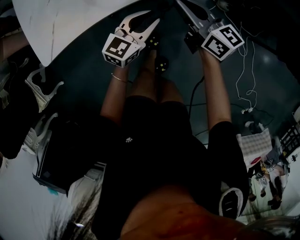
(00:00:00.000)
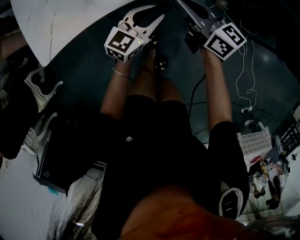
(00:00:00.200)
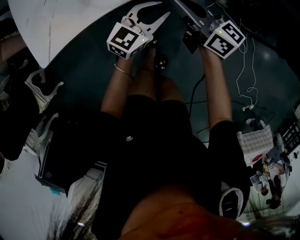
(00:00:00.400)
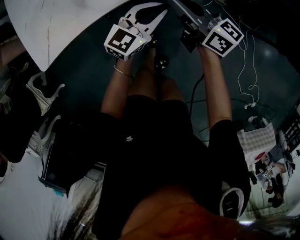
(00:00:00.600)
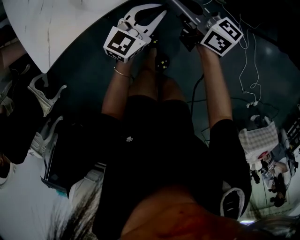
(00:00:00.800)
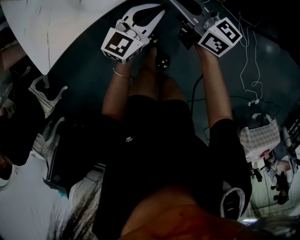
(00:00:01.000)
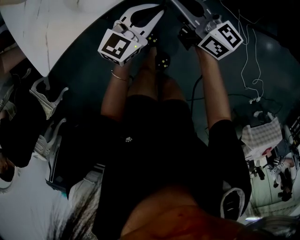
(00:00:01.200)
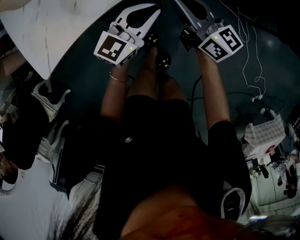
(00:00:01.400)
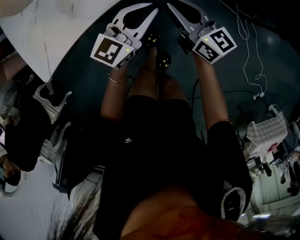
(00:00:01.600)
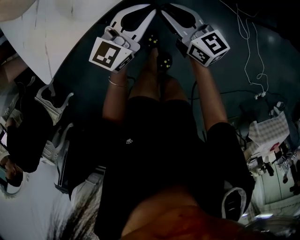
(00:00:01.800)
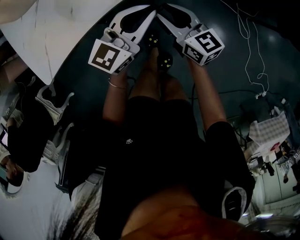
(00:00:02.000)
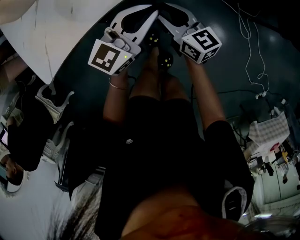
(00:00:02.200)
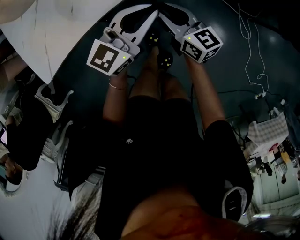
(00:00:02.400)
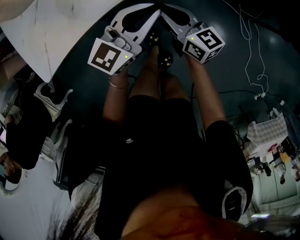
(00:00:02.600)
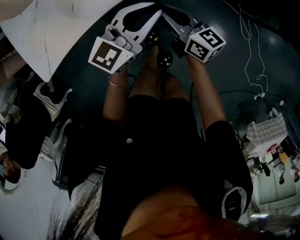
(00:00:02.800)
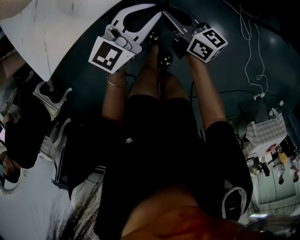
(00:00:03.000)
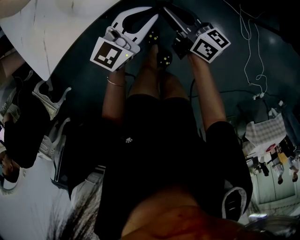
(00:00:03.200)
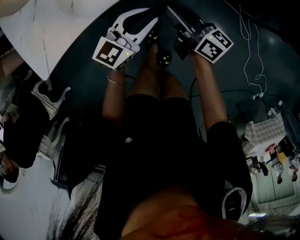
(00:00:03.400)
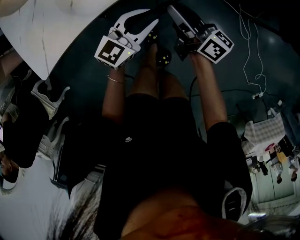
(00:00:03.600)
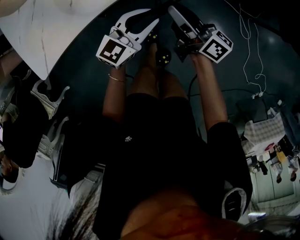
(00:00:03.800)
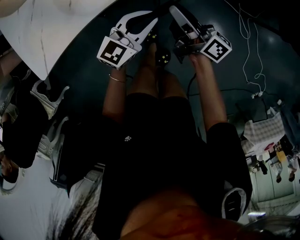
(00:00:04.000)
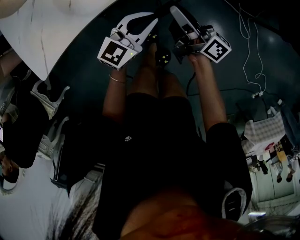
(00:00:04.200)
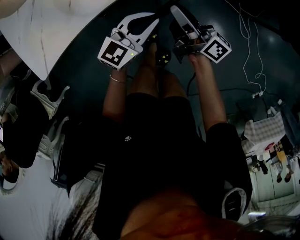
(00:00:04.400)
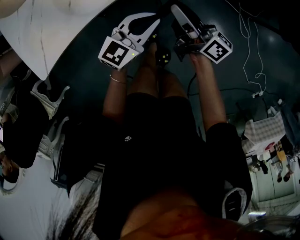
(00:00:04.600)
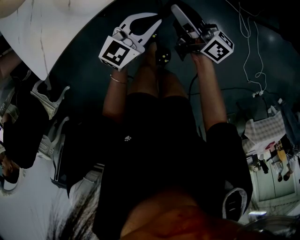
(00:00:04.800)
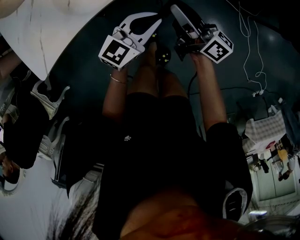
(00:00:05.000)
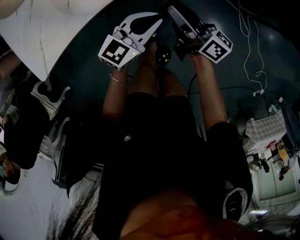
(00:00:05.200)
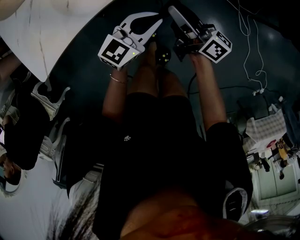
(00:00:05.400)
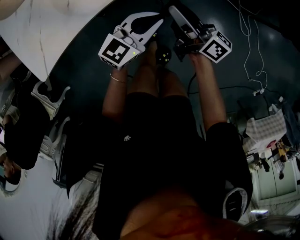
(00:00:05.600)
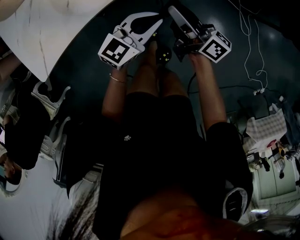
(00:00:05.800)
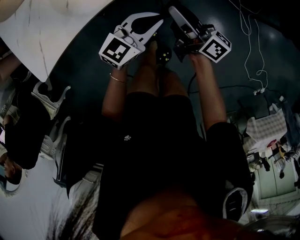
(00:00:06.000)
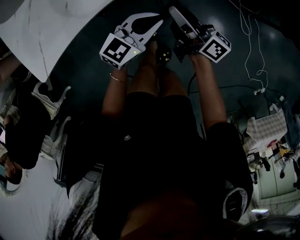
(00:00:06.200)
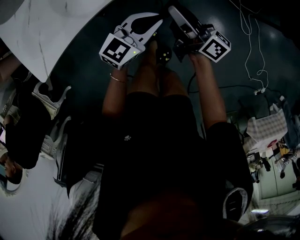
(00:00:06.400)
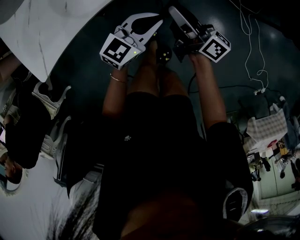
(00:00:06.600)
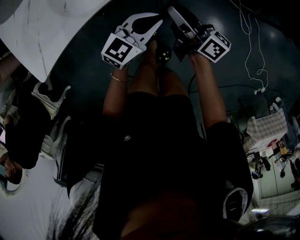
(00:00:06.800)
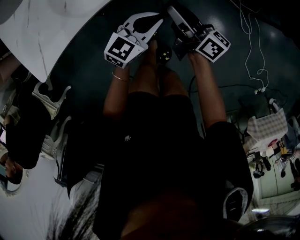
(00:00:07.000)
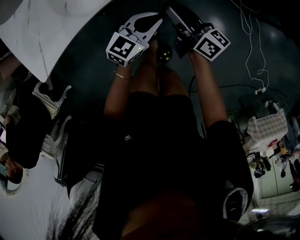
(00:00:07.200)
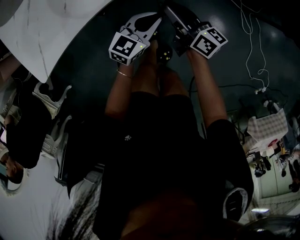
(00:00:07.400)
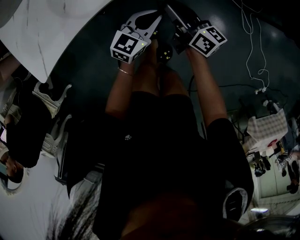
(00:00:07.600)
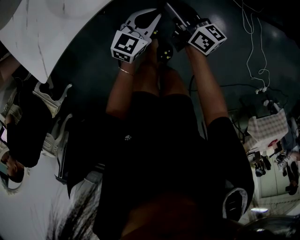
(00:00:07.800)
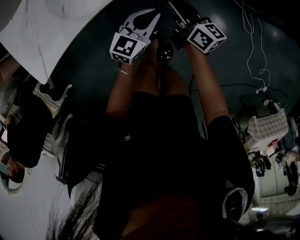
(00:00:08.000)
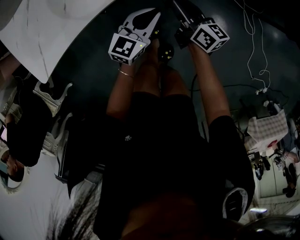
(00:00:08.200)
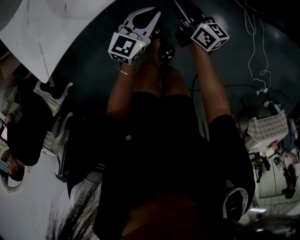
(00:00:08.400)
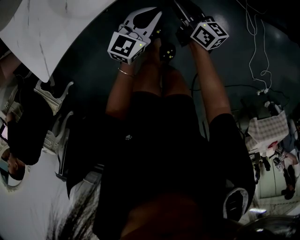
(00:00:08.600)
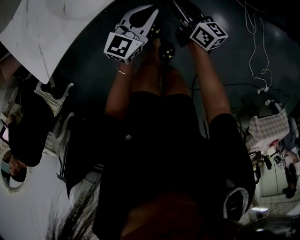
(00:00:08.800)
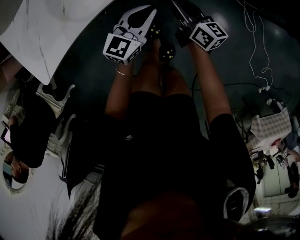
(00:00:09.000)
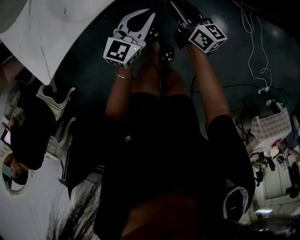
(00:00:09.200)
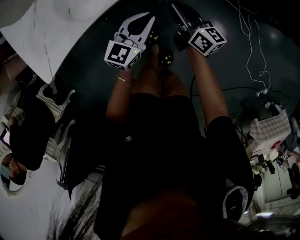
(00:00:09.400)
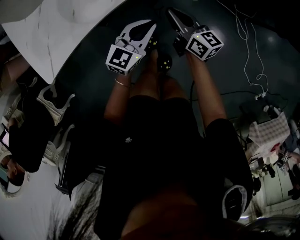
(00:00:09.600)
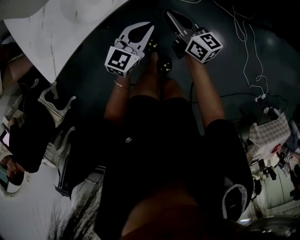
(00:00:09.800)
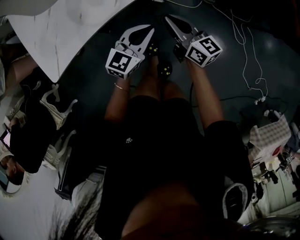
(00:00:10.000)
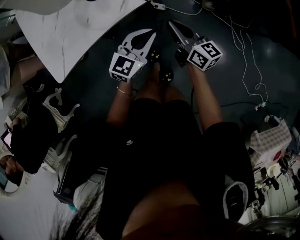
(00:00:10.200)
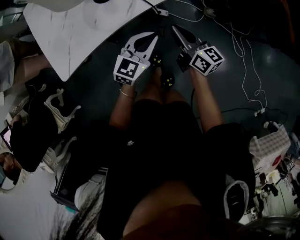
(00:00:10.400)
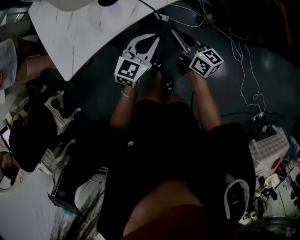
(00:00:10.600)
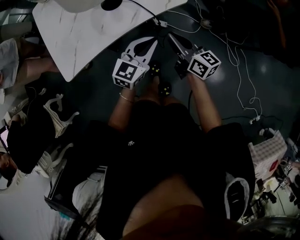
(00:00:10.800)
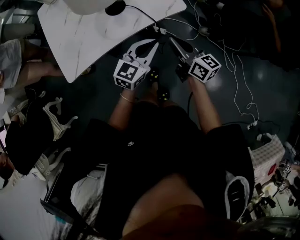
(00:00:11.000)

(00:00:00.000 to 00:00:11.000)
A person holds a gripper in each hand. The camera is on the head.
00:00:00.000 - 00:00:01.600: The left gripper goes approximately 10 cm upward and to the right.
00:00:01.600 - 00:00:03.200: There are only small adjustments of the grippers.
00:00:03.200 - 00:00:04.800: The left gripper ends up some 5 cm from where it was.
00:00:04.800 - 00:00:06.200: There are only small adjustments of the grippers.
00:00:06.200 - 00:00:07.800: The two grippers go roughly 5 cm downward.
00:00:07.800 - 00:00:09.400: The left gripper is displaced upward by some 5 cm.
00:00:09.400 - 00:00:11.000: The grippers both shift upward by roughly 15 cm.

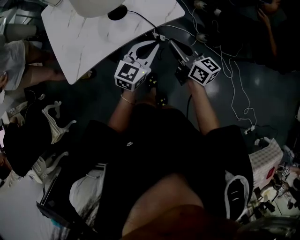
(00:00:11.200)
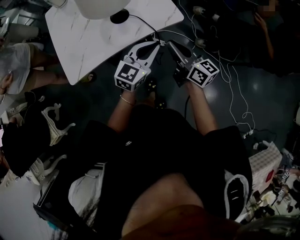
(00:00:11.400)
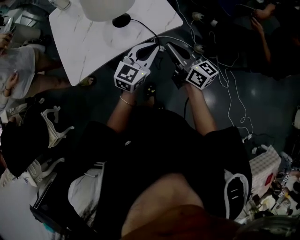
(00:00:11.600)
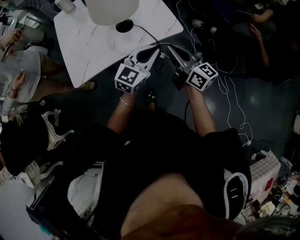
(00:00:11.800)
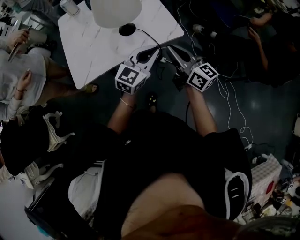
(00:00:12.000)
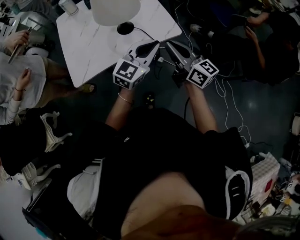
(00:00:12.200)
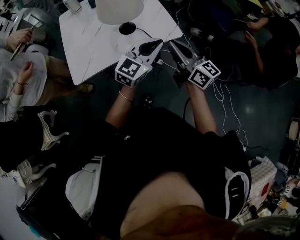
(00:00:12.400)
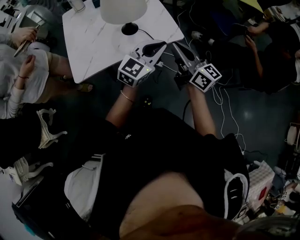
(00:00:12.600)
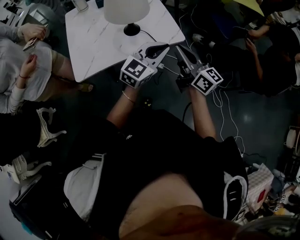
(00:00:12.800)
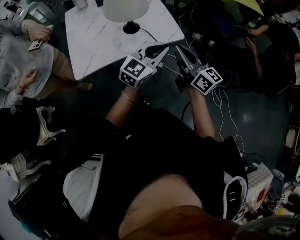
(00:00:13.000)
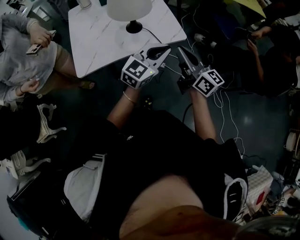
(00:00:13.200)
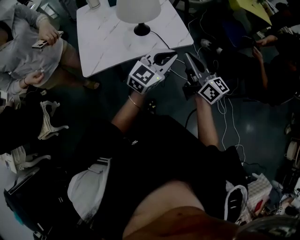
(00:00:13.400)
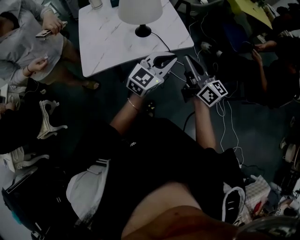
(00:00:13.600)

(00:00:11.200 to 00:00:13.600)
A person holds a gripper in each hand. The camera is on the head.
00:00:11.200 - 00:00:12.400: Both grippers travel together upward, roughly 15 cm.
00:00:12.400 - 00:00:13.600: The grippers stay close to where they were, moving slightly.

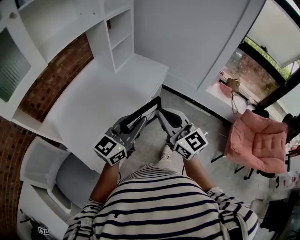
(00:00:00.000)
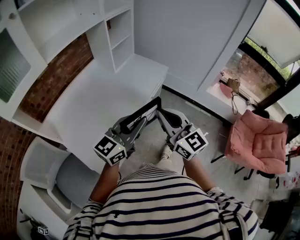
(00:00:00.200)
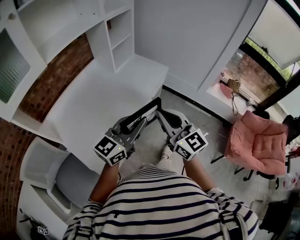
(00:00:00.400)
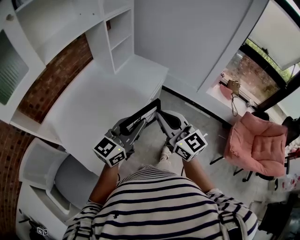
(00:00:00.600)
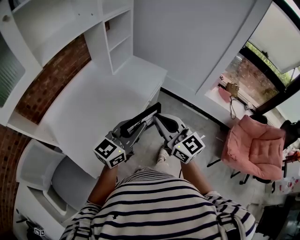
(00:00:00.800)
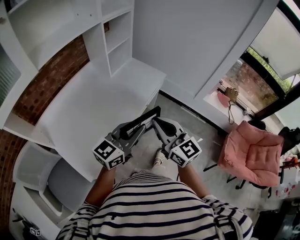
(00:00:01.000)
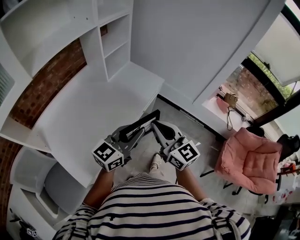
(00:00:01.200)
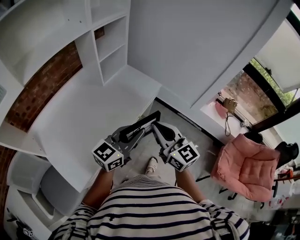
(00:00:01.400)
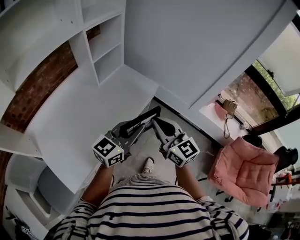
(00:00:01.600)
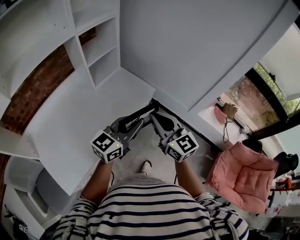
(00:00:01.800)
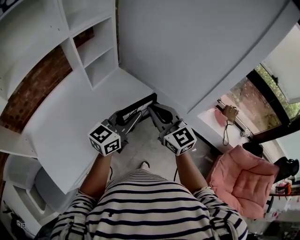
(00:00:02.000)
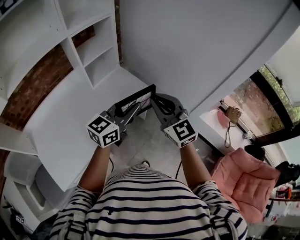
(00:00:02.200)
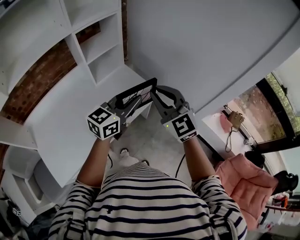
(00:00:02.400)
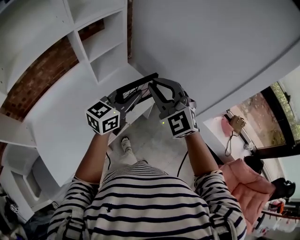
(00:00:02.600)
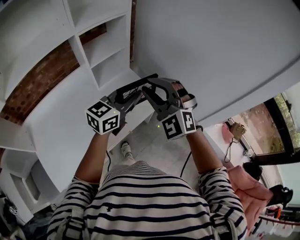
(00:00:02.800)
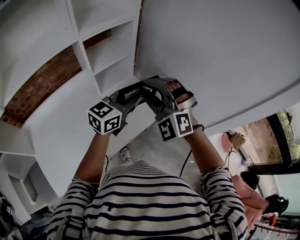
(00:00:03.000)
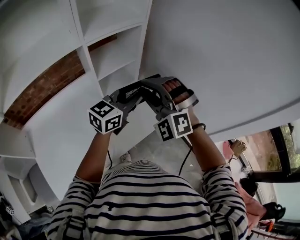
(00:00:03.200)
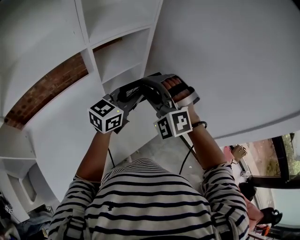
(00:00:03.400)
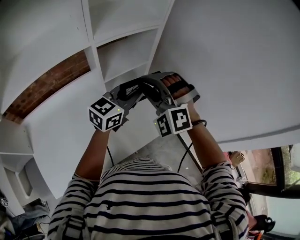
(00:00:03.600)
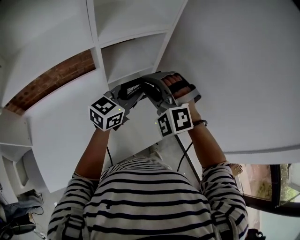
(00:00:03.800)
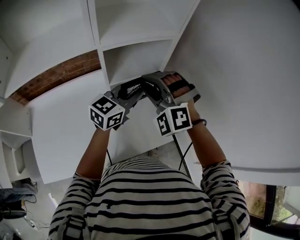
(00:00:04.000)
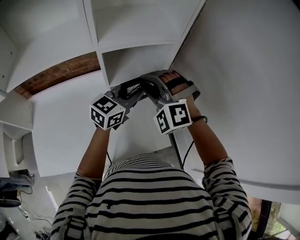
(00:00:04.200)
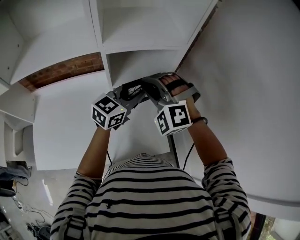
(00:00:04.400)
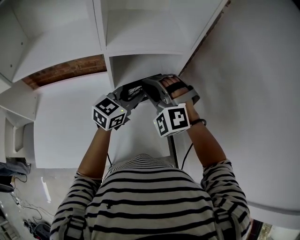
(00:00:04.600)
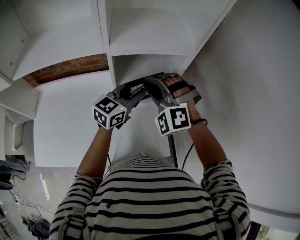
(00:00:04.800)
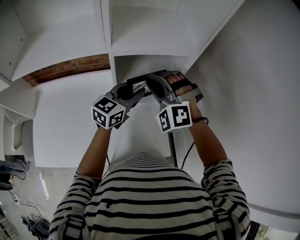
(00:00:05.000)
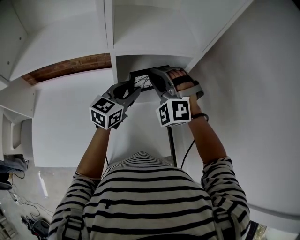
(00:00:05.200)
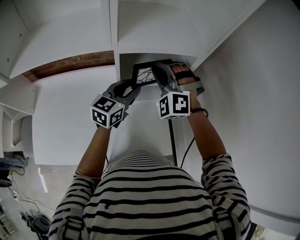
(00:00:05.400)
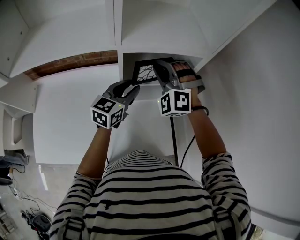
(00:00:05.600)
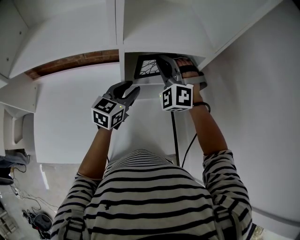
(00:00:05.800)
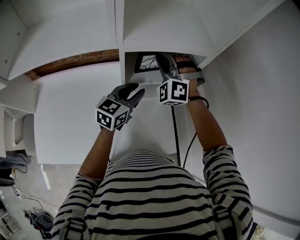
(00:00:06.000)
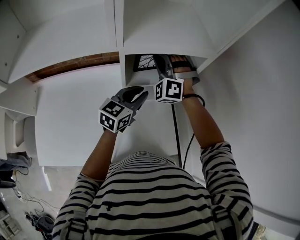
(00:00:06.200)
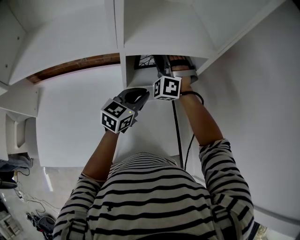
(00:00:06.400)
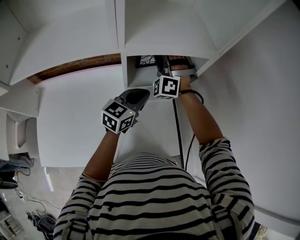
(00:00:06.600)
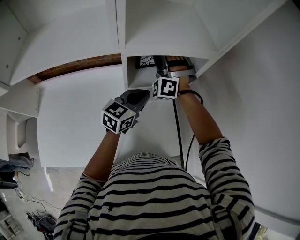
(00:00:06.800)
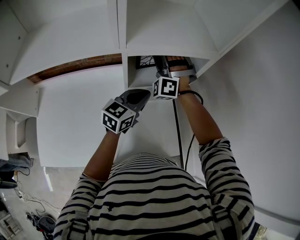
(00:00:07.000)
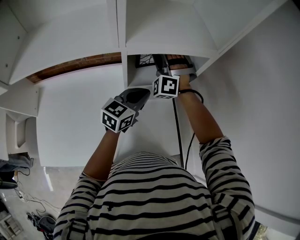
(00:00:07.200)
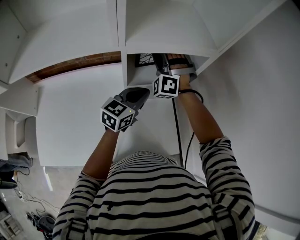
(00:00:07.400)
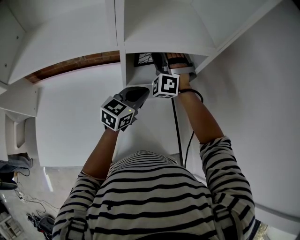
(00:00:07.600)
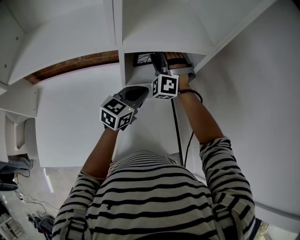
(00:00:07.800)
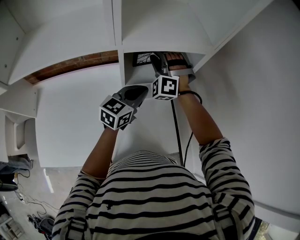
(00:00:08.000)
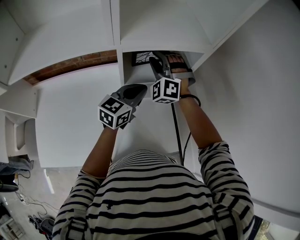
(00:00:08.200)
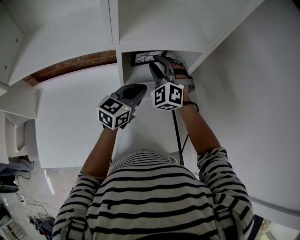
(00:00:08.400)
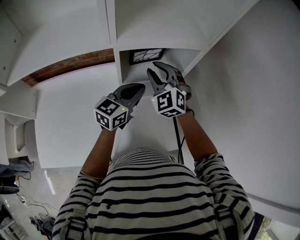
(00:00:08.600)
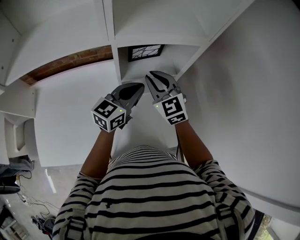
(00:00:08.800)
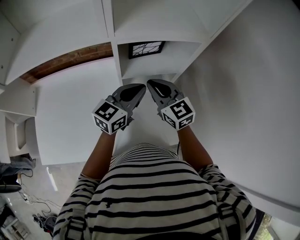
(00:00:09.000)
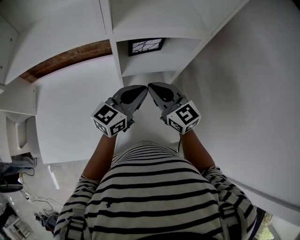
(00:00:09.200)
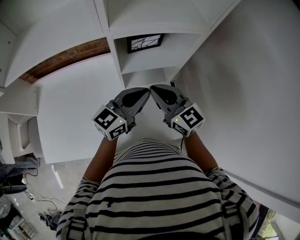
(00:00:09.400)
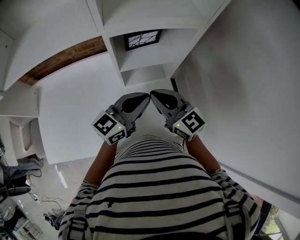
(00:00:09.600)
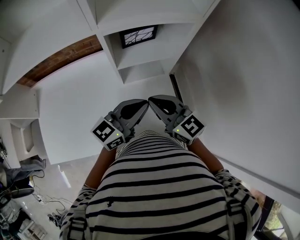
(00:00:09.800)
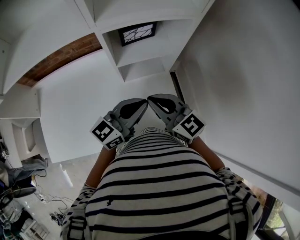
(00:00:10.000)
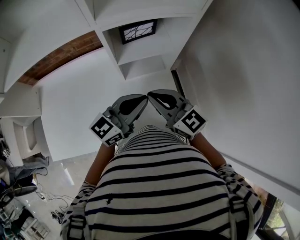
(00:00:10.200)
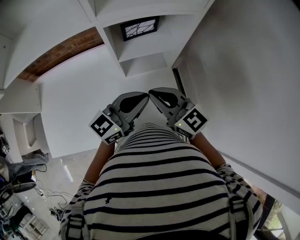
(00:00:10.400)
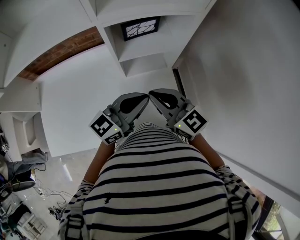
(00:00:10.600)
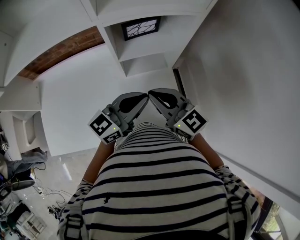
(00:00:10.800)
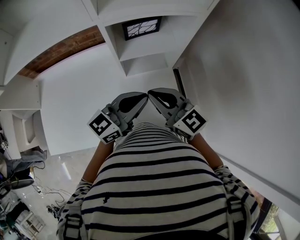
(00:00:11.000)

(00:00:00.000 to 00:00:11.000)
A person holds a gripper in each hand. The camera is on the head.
00:00:00.000 - 00:00:01.600: Both grippers travel together forward and to the right, roughly 20 cm.
00:00:01.600 - 00:00:03.200: Both grippers travel together forward, roughly 30 cm. The right gripper rotates around the line of its fingers by some 80 degrees, counterclockwise from behind.
00:00:03.200 - 00:00:04.800: The right gripper moves roughly 20 cm, and changes its angle by roughly 30 degrees. The left gripper moves approximately 20 cm, and swivels about 30 degrees.
00:00:04.800 - 00:00:06.200: The left gripper travels downward by approximately 5 cm; the right gripper moves forward, approximately 15 cm.
00:00:06.200 - 00:00:07.800: The grippers move only a little.
00:00:07.800 - 00:00:09.400: The right gripper goes roughly 20 cm backward, twists about 80 degrees clockwise, seen from behind, and closes its fingers, while the left gripper goes approximately 5 cm backward.
00:00:09.400 - 00:00:11.000: Both grippers travel together backward, roughly 5 cm.
